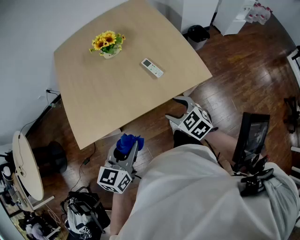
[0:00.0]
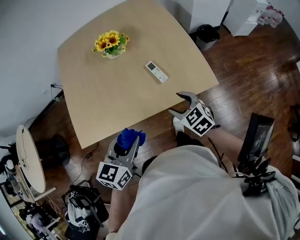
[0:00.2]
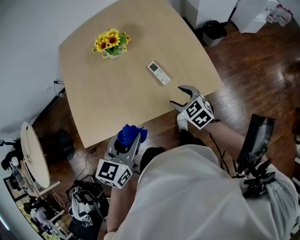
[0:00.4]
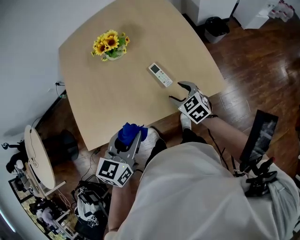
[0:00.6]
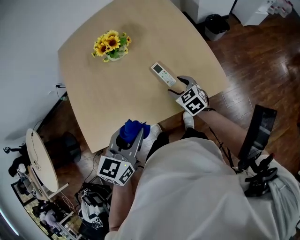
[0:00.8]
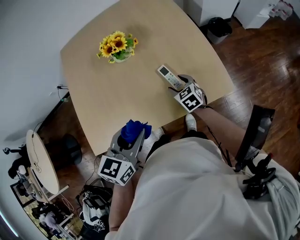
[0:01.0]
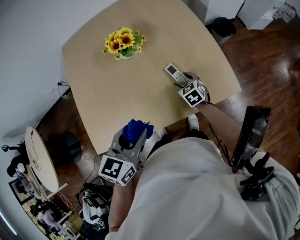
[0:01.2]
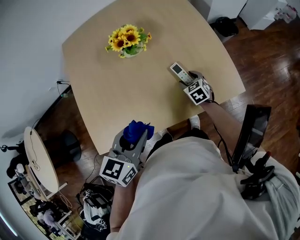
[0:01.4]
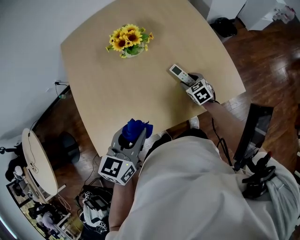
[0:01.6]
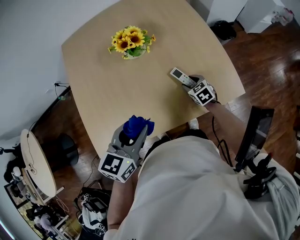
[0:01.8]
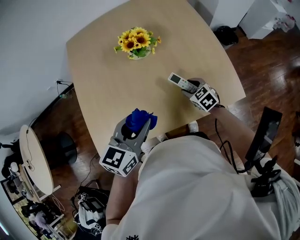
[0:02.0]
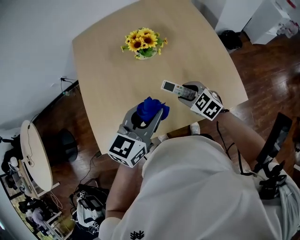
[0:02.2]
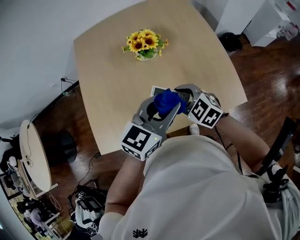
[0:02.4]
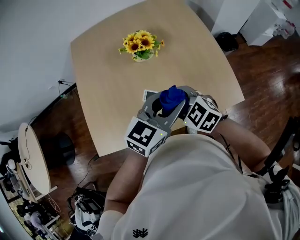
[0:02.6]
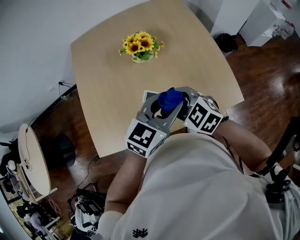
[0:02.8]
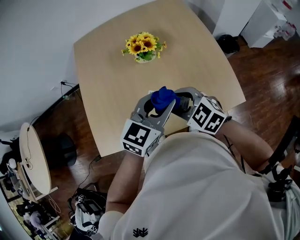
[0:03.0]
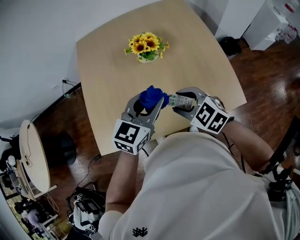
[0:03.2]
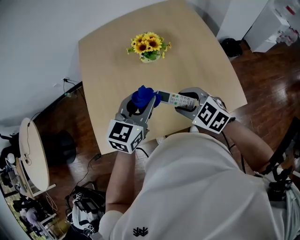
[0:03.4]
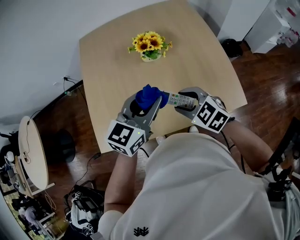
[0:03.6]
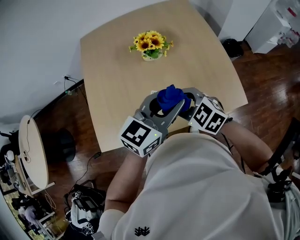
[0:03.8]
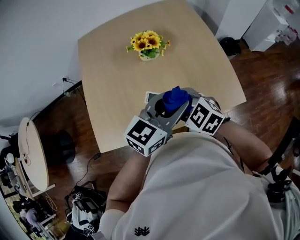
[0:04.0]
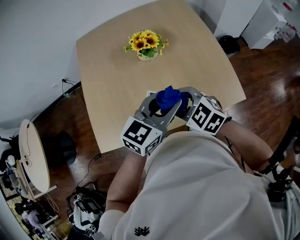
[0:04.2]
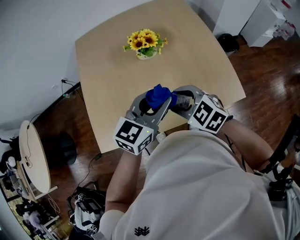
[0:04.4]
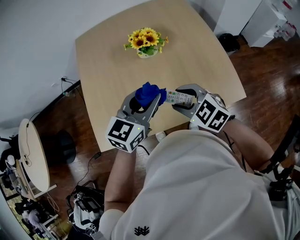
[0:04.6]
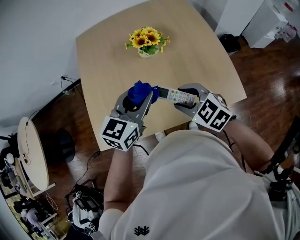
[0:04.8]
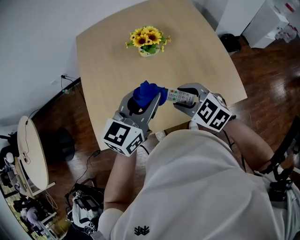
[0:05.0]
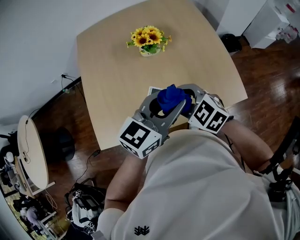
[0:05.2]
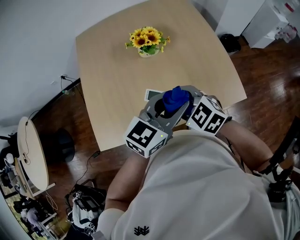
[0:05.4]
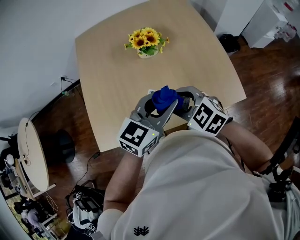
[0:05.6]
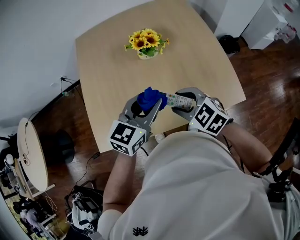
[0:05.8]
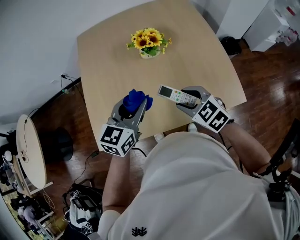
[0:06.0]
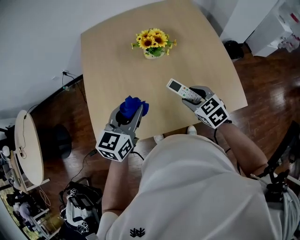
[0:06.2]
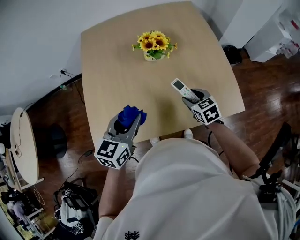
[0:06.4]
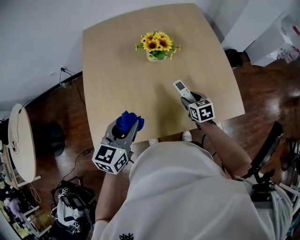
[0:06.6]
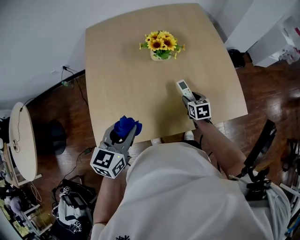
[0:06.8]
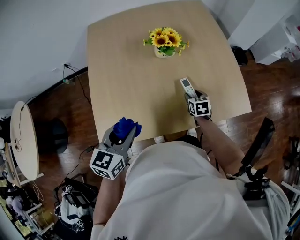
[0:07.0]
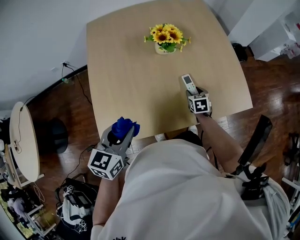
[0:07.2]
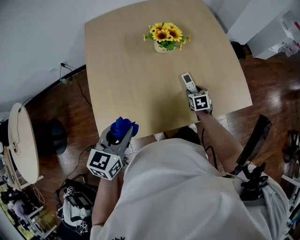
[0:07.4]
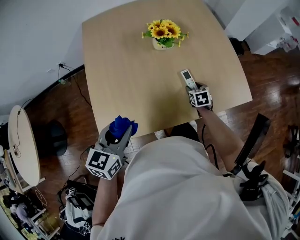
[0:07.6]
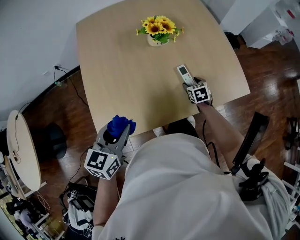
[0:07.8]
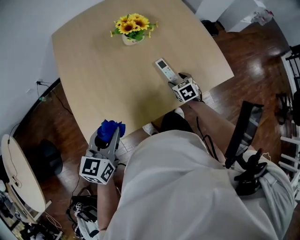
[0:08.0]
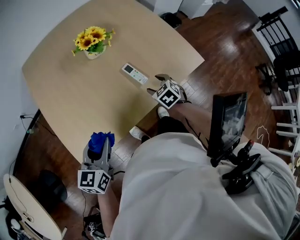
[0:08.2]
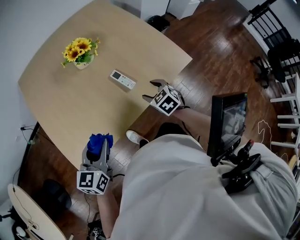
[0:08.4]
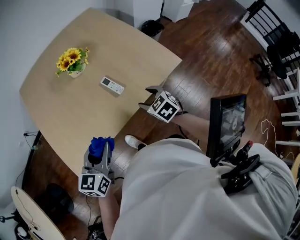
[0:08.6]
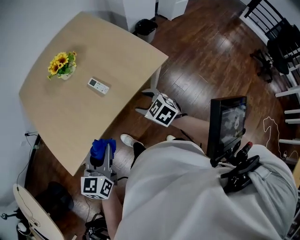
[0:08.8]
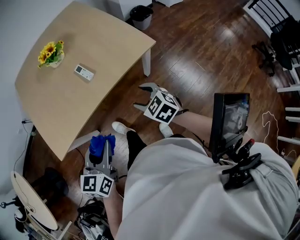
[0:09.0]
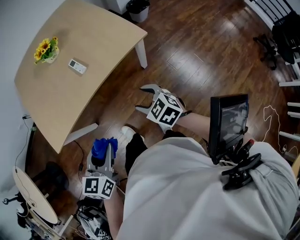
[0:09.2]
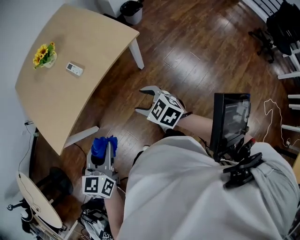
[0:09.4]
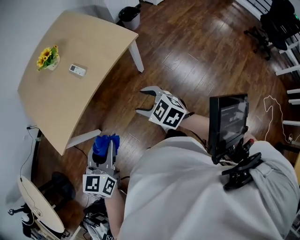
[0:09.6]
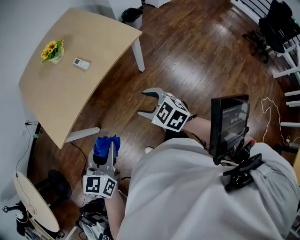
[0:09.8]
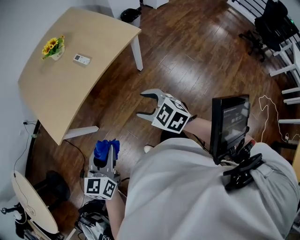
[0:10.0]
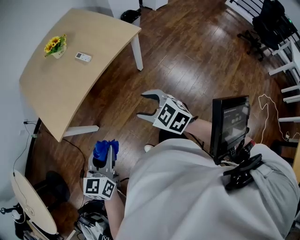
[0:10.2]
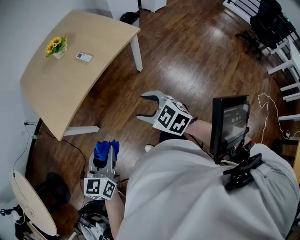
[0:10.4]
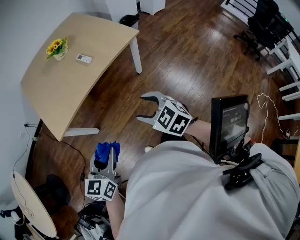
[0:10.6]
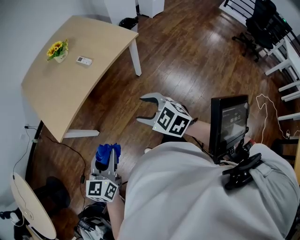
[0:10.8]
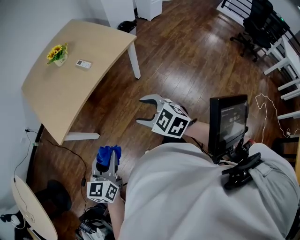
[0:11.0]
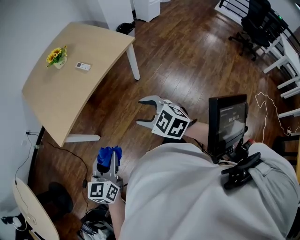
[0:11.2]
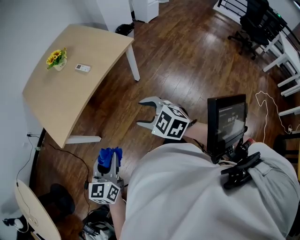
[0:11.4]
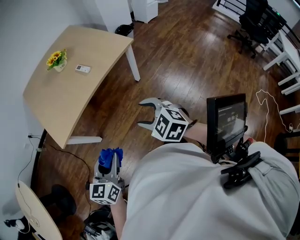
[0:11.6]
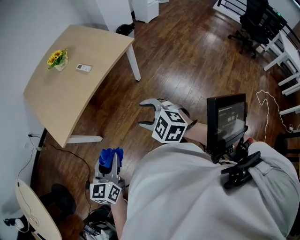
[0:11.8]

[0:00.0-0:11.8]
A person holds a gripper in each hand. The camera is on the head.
0:00.0 to 0:01.4: The right gripper moves forward and downward, approximately 30 cm, while the left gripper travels forward by approximately 15 cm.
0:01.4 to 0:03.0: The right gripper travels upward and to the left by approximately 25 cm, and rotates roughly 40 degrees. Meanwhile the left gripper travels forward and to the right by roughly 10 cm.
0:03.0 to 0:04.4: The left gripper moves left and right over some 10 cm, changing direction 2 times.
0:04.4 to 0:06.0: The left gripper goes left and right, roughly 15 cm each way, reversing 2 times.
0:06.0 to 0:07.4: The right gripper shifts roughly 25 cm downward, and rotates about 40 degrees; the left gripper travels to the left and backward by some 15 cm.
0:07.4 to 0:08.8: The left gripper is displaced to the right and backward by approximately 25 cm; the right gripper moves backward, upward and to the right, about 30 cm.
0:08.8 to 0:10.4: Both grippers move backward, roughly 30 cm.
0:10.4 to 0:11.8: The grippers stay close to where they were, moving slightly.

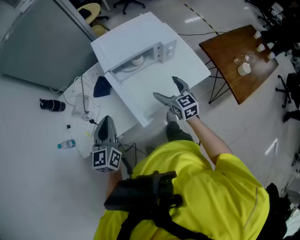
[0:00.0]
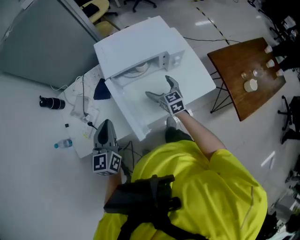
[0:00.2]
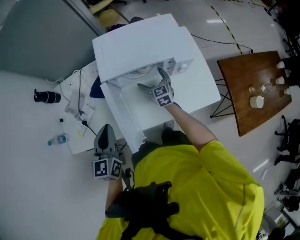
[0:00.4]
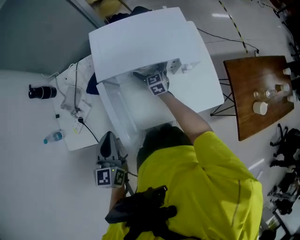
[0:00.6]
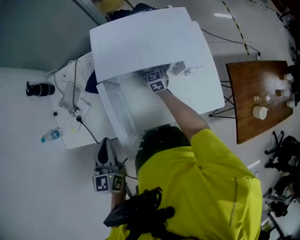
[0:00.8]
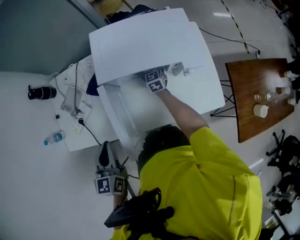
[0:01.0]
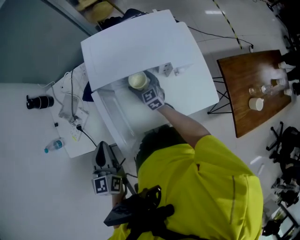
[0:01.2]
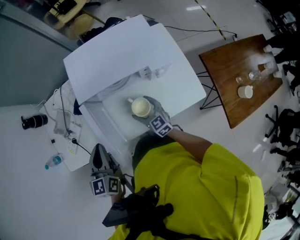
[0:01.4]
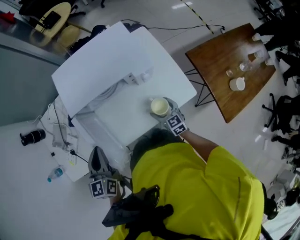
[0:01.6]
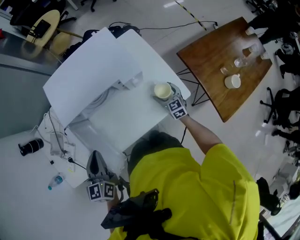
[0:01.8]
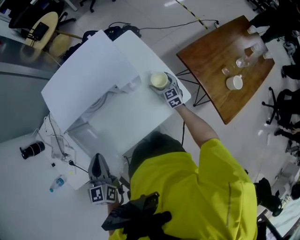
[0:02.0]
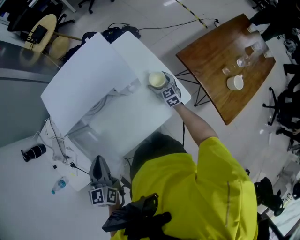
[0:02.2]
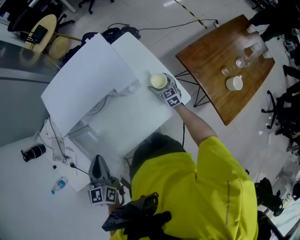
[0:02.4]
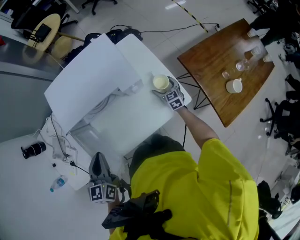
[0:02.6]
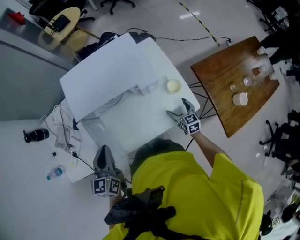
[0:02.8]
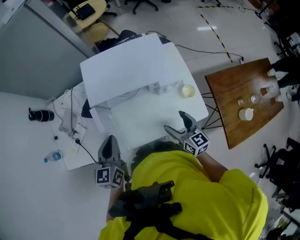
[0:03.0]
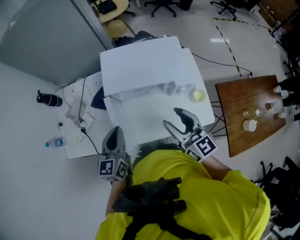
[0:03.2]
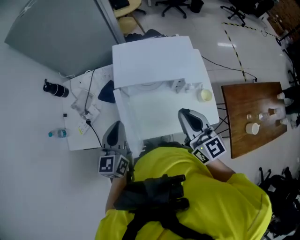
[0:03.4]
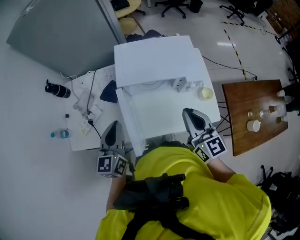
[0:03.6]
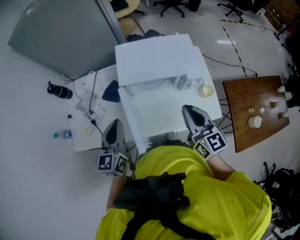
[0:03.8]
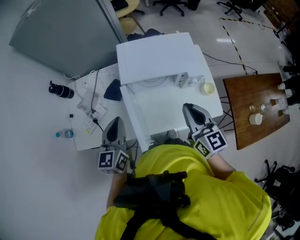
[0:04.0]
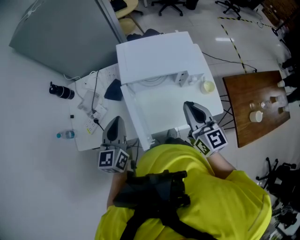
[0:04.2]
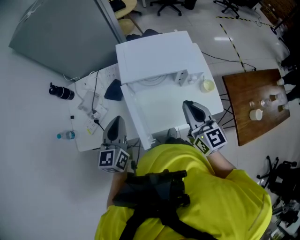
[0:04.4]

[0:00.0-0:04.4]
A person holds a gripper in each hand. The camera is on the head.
0:00.0 to 0:01.4: The left gripper shifts about 15 cm to the right, forward and downward. The right gripper travels downward by about 15 cm, and moves approximately 35 cm forward and comes back.
0:01.4 to 0:03.0: The right gripper moves to the right and upward, approximately 15 cm.
0:03.0 to 0:04.4: The left gripper shifts roughly 25 cm forward and to the left. The right gripper goes about 30 cm forward, upward and to the left, and closes its fingers.

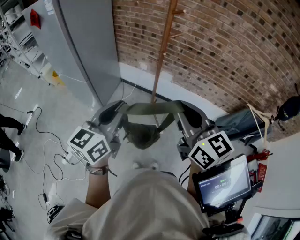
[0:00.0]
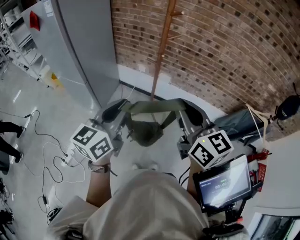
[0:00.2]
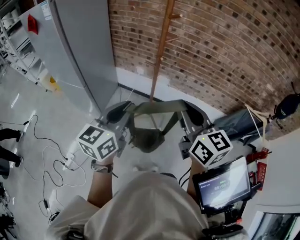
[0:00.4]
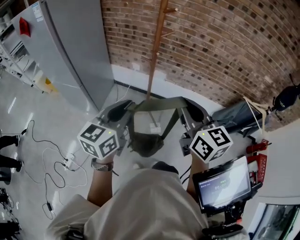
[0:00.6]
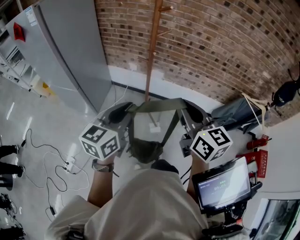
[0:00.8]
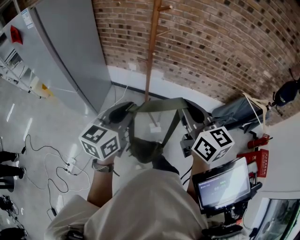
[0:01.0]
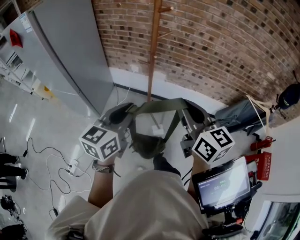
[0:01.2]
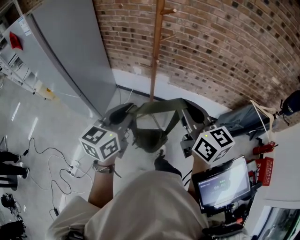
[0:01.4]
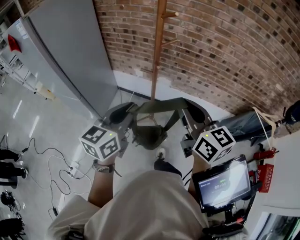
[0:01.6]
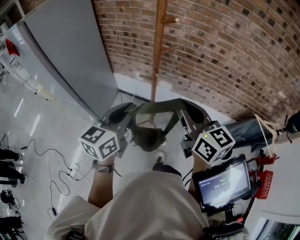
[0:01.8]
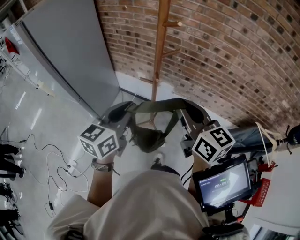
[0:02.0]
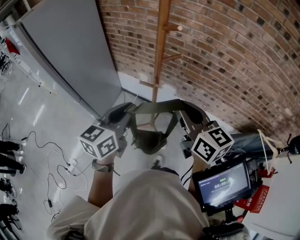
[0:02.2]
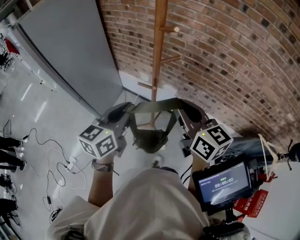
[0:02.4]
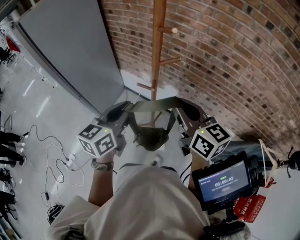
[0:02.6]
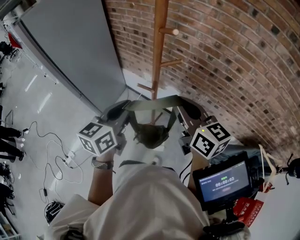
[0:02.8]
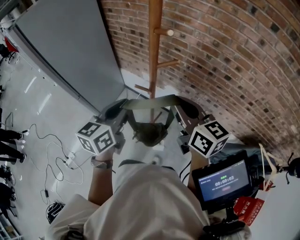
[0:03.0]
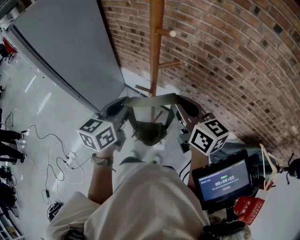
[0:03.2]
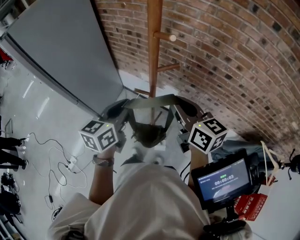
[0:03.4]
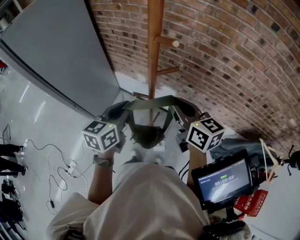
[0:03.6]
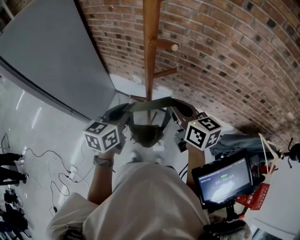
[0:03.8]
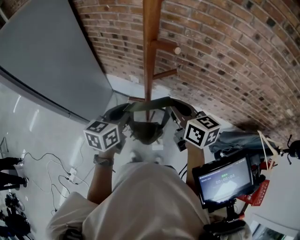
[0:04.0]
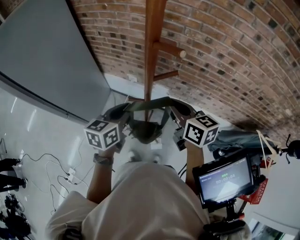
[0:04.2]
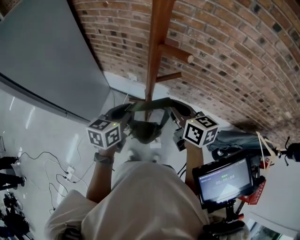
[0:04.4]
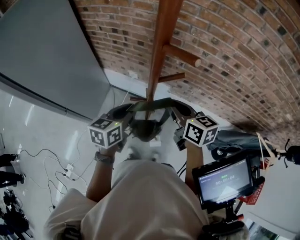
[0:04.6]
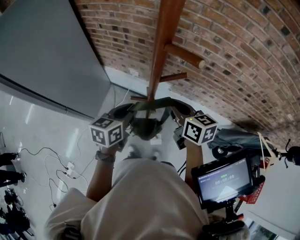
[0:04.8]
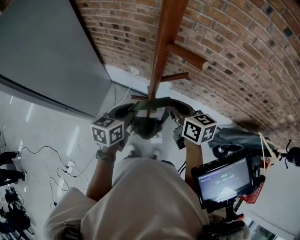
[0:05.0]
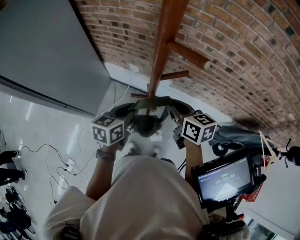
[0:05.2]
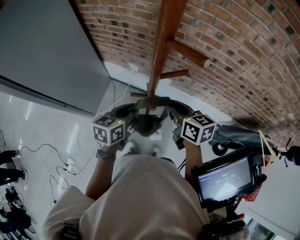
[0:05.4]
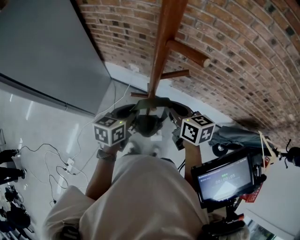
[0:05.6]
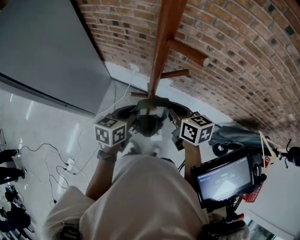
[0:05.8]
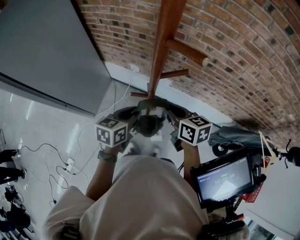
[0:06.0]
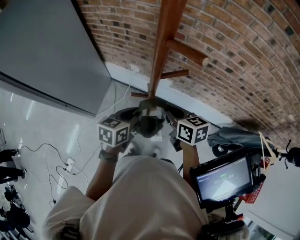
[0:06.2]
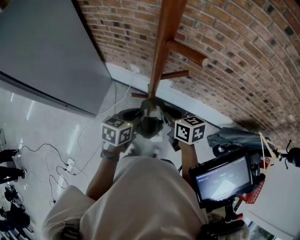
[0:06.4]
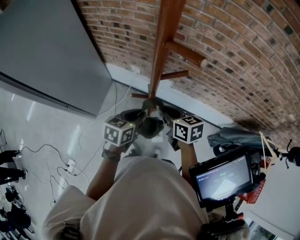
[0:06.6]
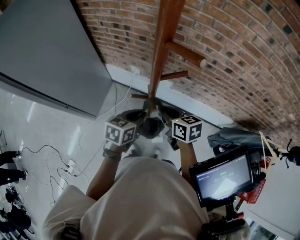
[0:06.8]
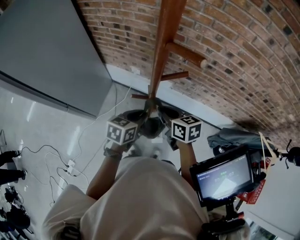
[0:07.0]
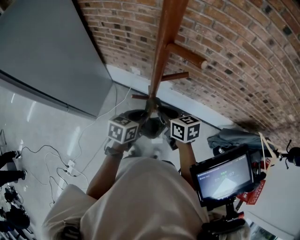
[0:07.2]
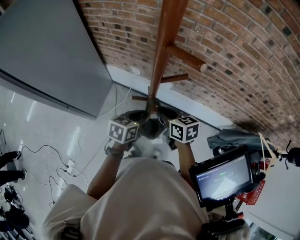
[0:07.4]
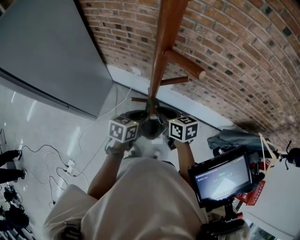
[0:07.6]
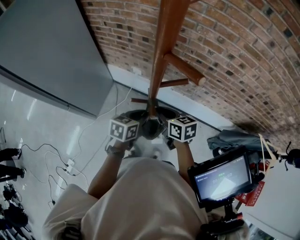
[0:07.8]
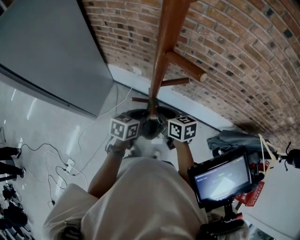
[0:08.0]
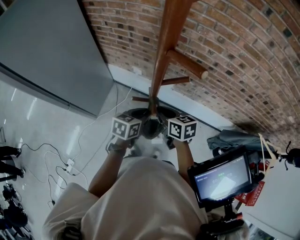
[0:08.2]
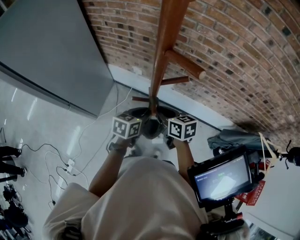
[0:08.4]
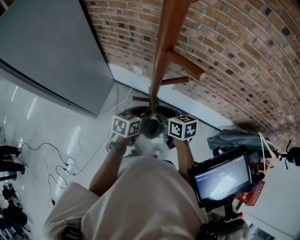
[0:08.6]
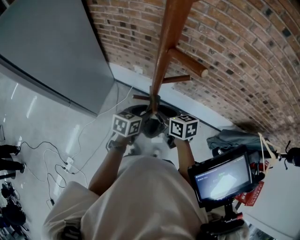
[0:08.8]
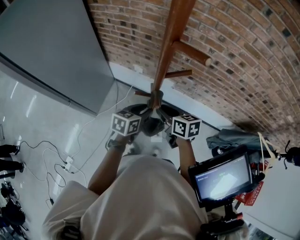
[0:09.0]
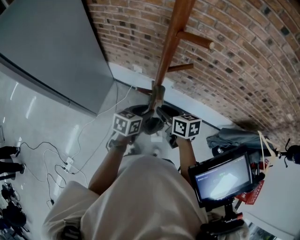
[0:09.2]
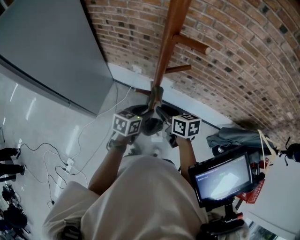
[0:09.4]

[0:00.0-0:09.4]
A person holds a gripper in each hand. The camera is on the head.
0:00.0 to 0:01.6: Both grippers travel together forward, about 15 cm.
0:01.6 to 0:03.2: Both grippers move forward, roughly 20 cm.
0:03.2 to 0:04.8: Both grippers travel together downward and forward, approximately 15 cm.
0:04.8 to 0:06.2: The right gripper shifts some 5 cm downward.
0:06.2 to 0:09.4: The grippers move only a little.
